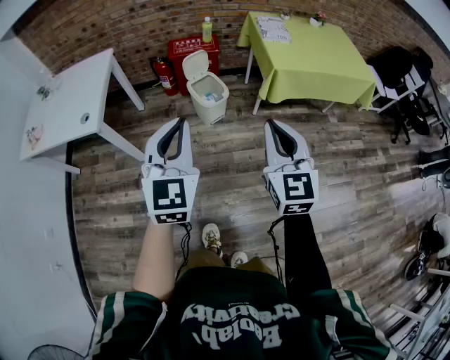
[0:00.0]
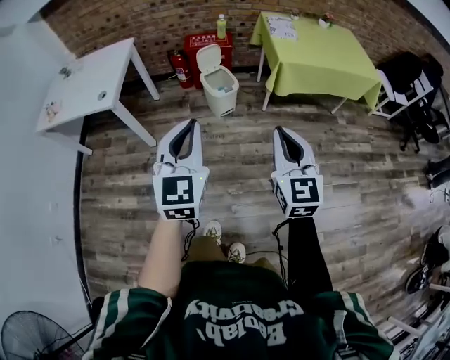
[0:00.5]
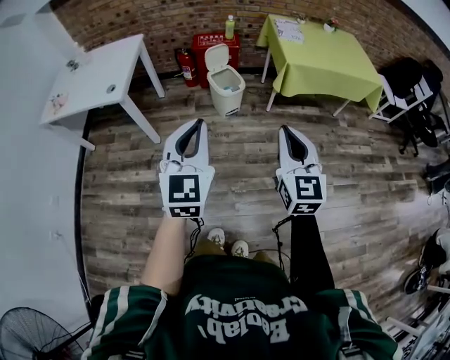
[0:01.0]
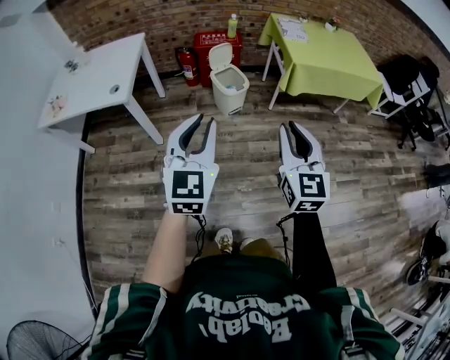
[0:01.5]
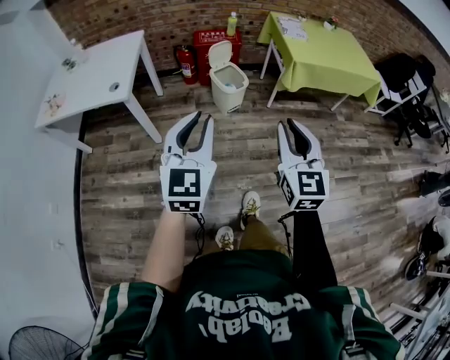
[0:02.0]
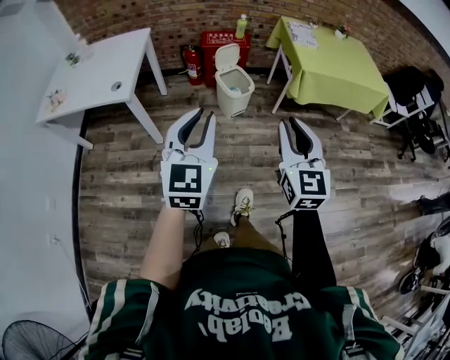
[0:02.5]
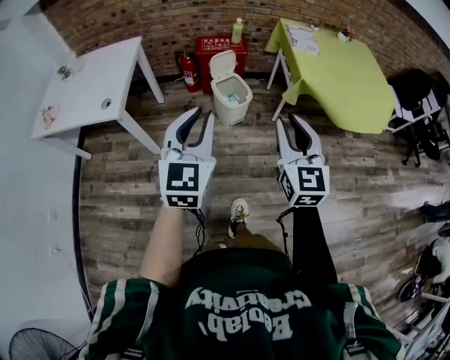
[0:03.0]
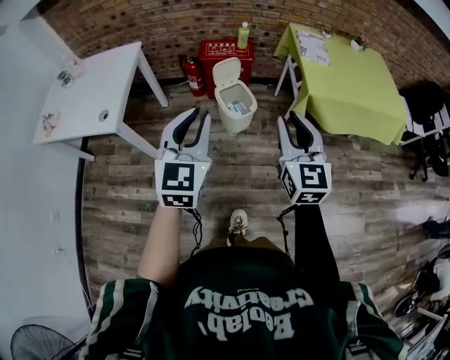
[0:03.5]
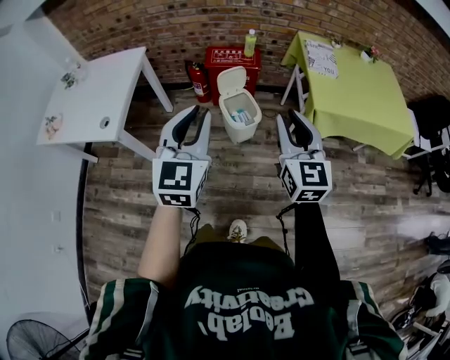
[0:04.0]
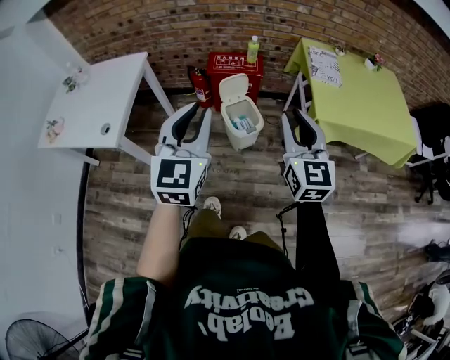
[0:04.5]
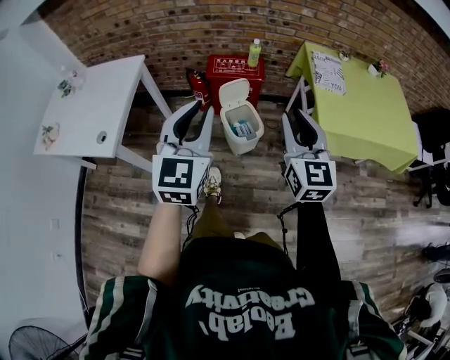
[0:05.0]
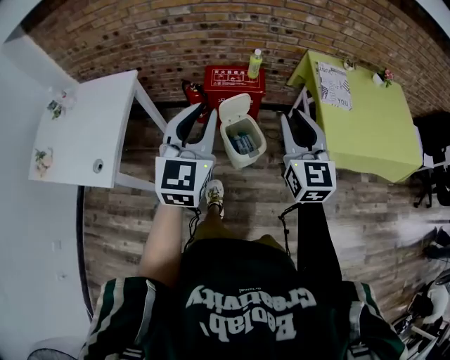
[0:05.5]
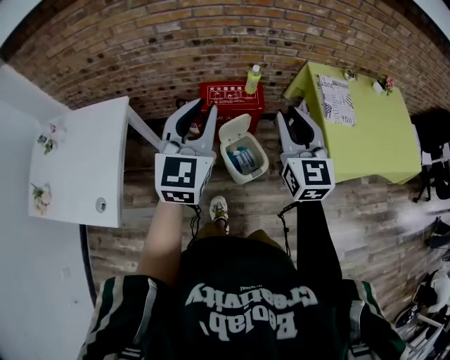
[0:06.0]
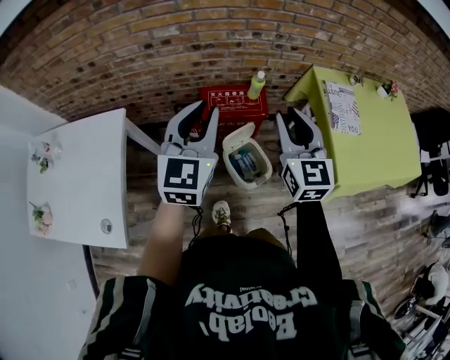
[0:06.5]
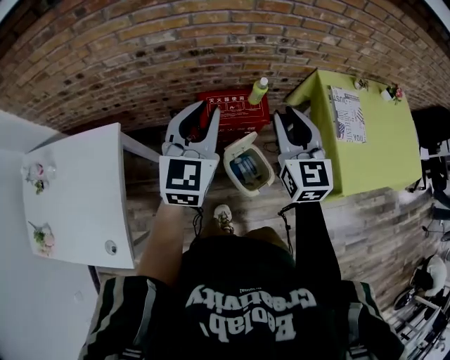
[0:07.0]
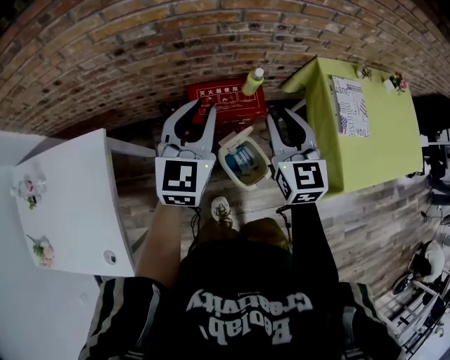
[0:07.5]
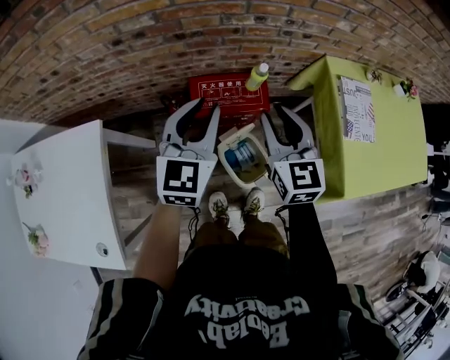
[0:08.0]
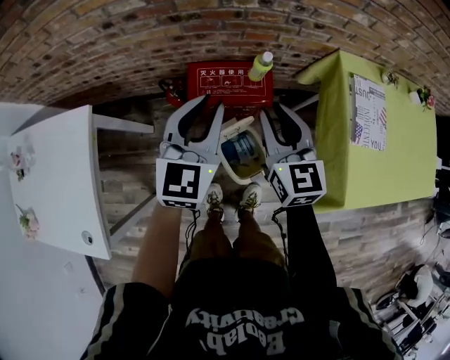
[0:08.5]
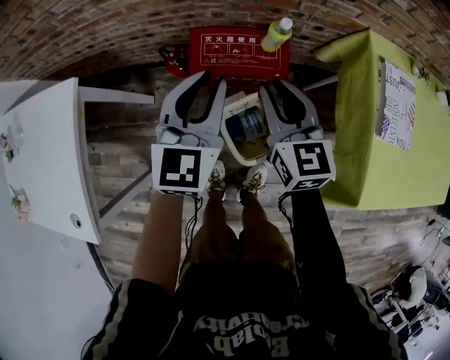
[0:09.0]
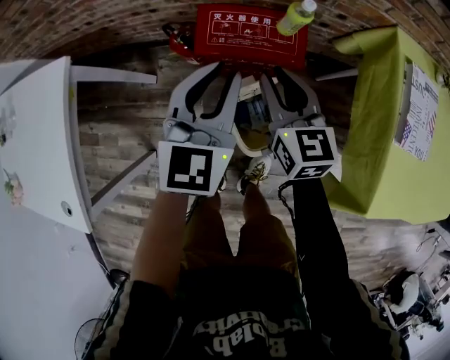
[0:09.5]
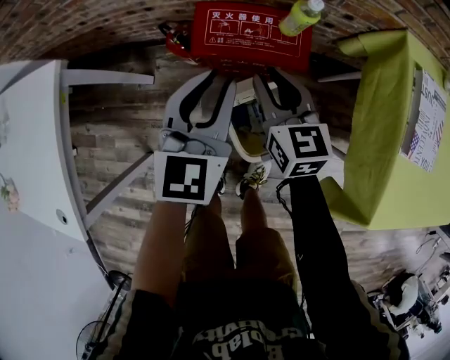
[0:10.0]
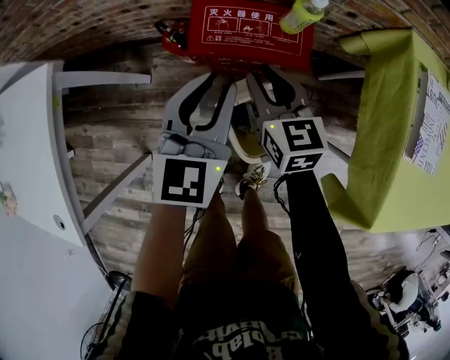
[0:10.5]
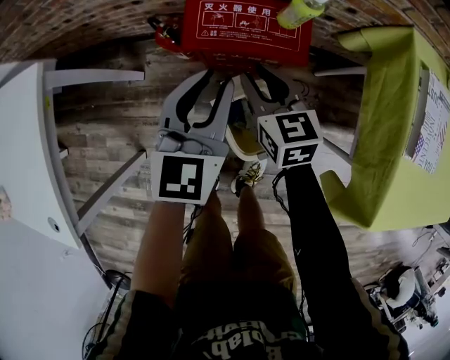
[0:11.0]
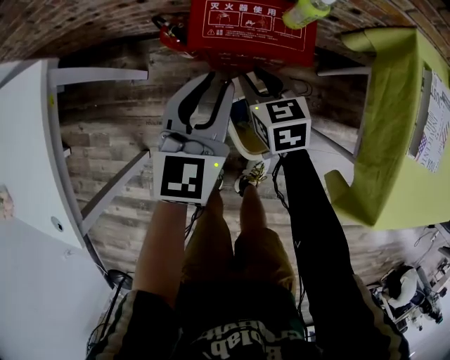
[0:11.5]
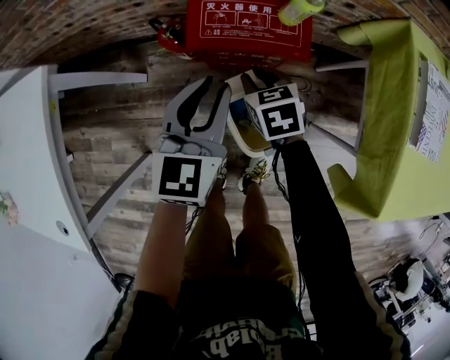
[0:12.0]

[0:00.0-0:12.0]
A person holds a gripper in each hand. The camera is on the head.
0:00.0 to 0:02.0: The grippers both shift backward and to the left by approximately 15 cm.
0:02.0 to 0:04.0: The grippers both shift forward by approximately 35 cm.
0:04.0 to 0:06.0: Both grippers travel together forward, approximately 35 cm.
0:06.0 to 0:08.0: Both grippers travel together forward and downward, roughly 25 cm.
0:08.0 to 0:10.0: Both grippers travel together downward, approximately 20 cm. The right gripper swivels some 20 degrees.
0:10.0 to 0:12.0: The right gripper moves downward, about 10 cm, and turns by approximately 30 degrees, while the left gripper heads downward, covering about 5 cm.

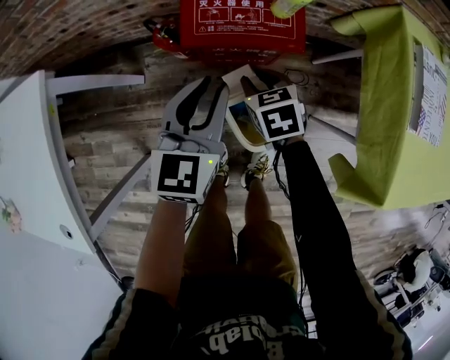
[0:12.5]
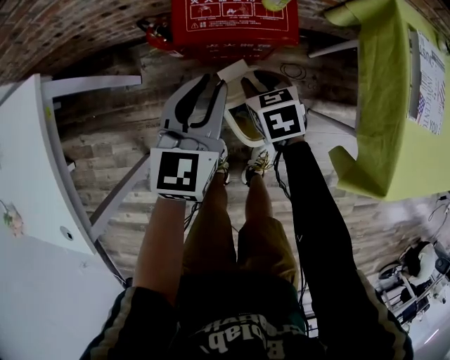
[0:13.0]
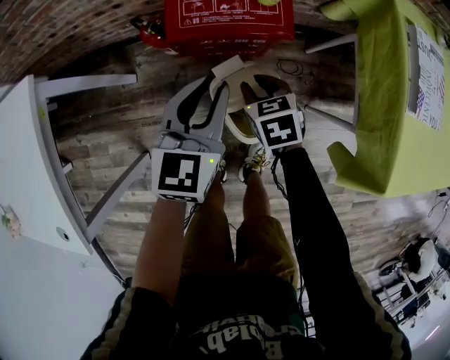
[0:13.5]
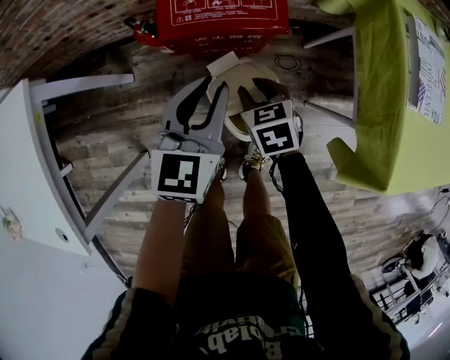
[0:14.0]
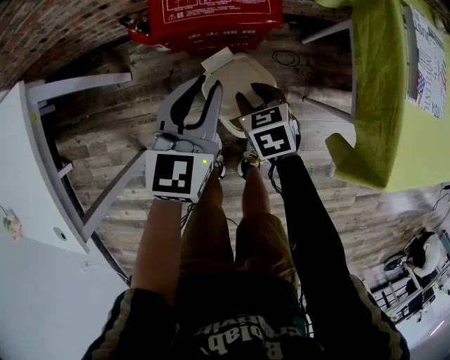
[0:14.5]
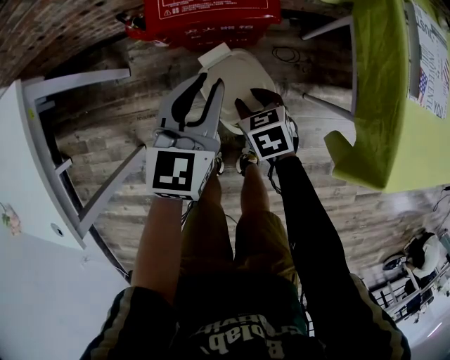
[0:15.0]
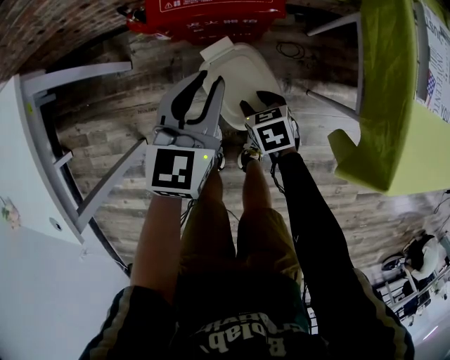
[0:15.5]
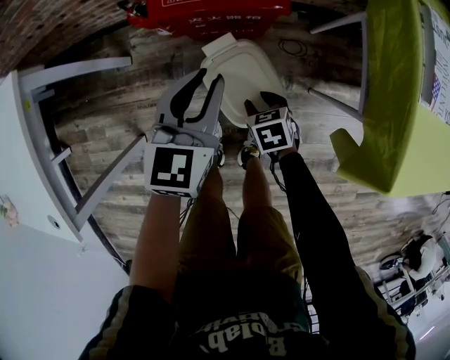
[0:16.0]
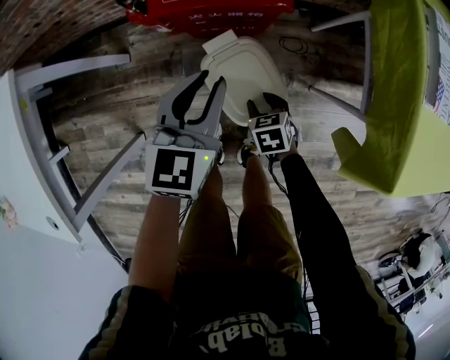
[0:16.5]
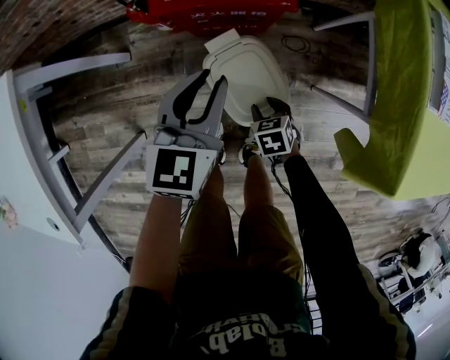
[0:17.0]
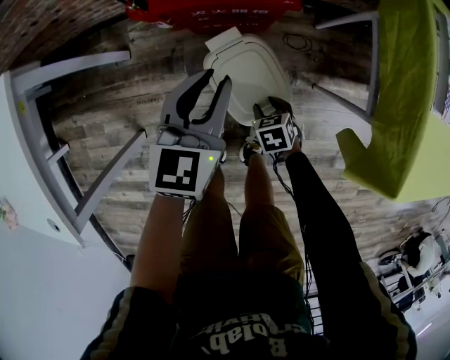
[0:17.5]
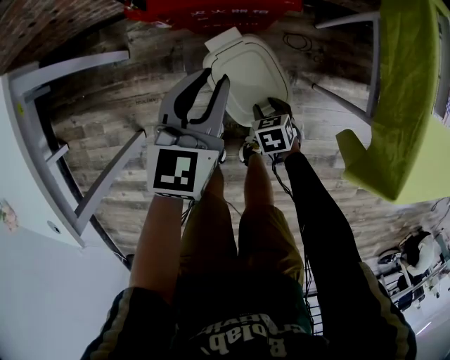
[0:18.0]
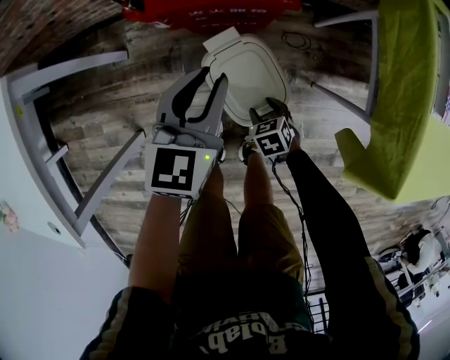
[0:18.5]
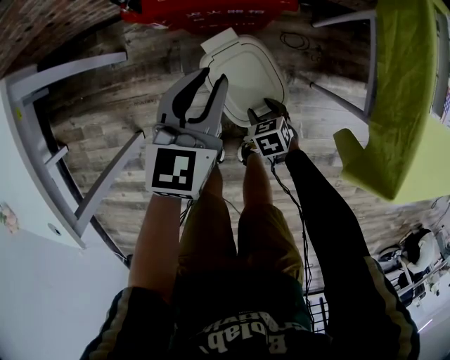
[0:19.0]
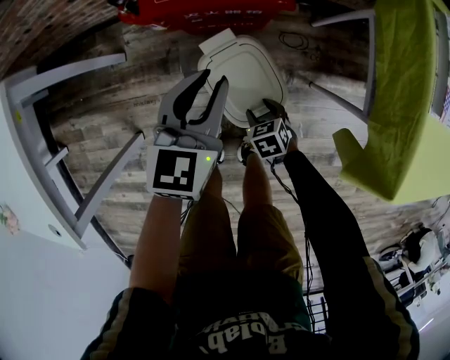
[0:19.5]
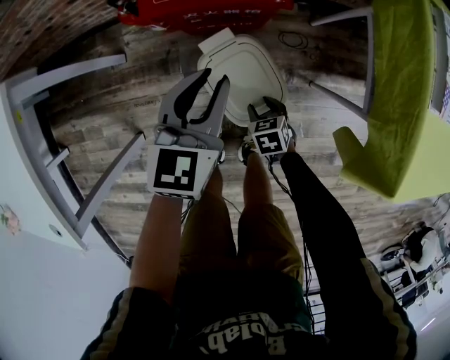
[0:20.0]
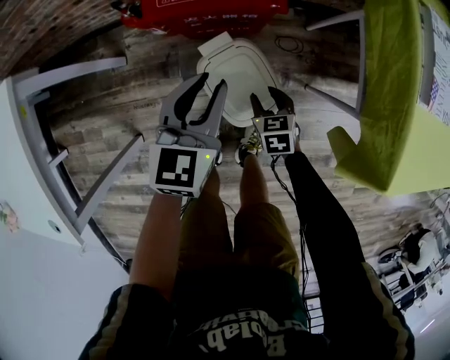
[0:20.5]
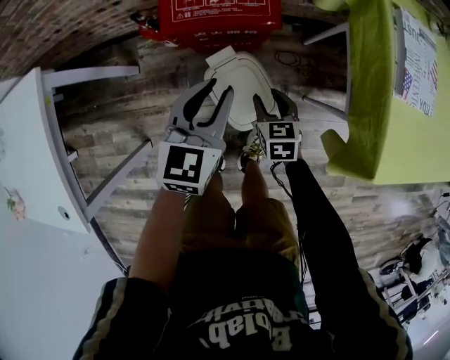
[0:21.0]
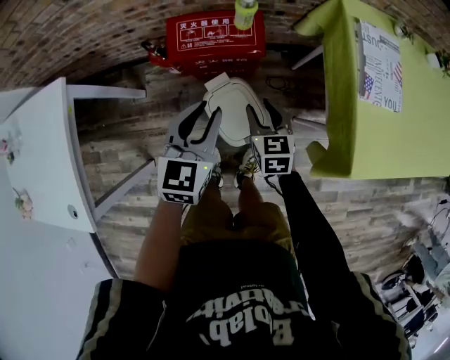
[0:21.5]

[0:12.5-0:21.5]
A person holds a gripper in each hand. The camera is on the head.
0:12.5 to 0:14.5: The right gripper heads backward, covering roughly 10 cm, while the left gripper travels to the right by roughly 5 cm.
0:14.5 to 0:17.0: The right gripper travels downward and backward by some 15 cm.
0:17.0 to 0:19.5: The grippers make only small movements.
0:19.5 to 0:21.5: The right gripper shifts some 30 cm upward, and tilts its fingers roughly 30 degrees upward. The left gripper moves upward, some 15 cm.

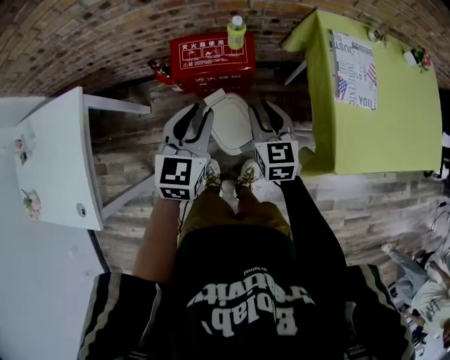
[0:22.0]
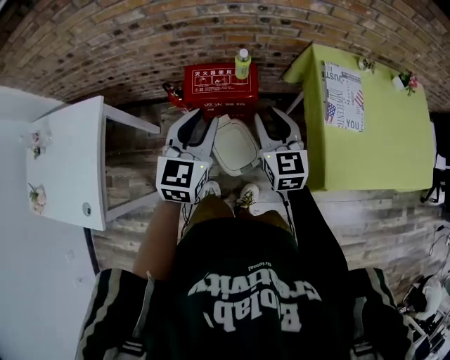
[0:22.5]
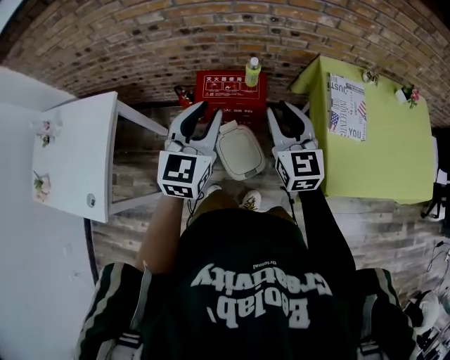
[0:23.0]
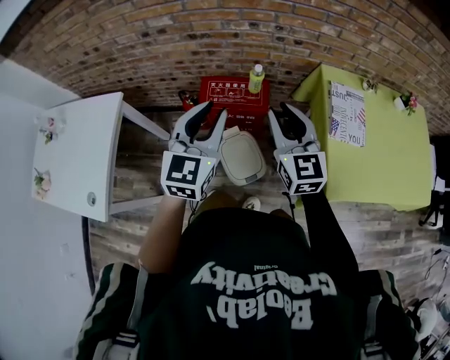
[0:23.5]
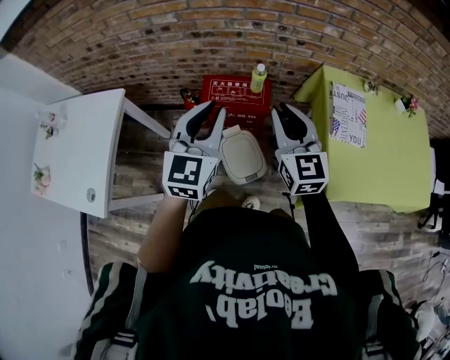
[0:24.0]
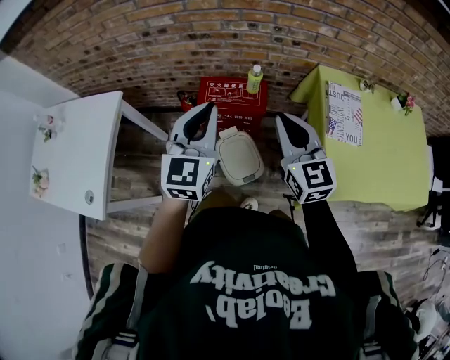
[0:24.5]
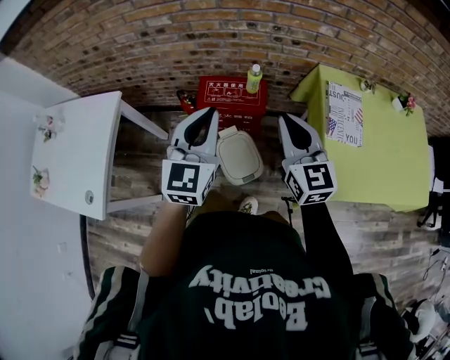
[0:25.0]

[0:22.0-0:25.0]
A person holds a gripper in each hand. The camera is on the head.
0:22.0 to 0:23.5: Both grippers move upward, approximately 20 cm. The right gripper rotates approximately 20 degrees.
0:23.5 to 0:25.0: The left gripper closes up; the right gripper closes up.

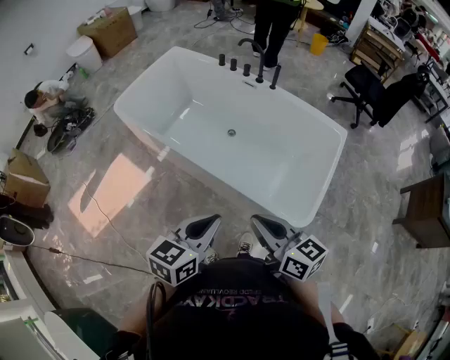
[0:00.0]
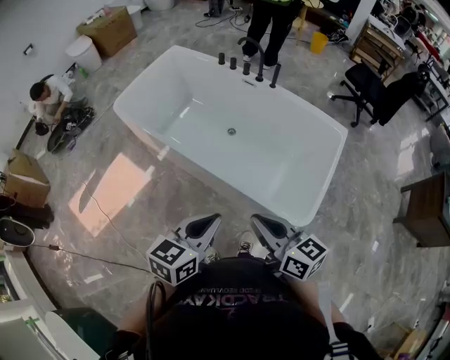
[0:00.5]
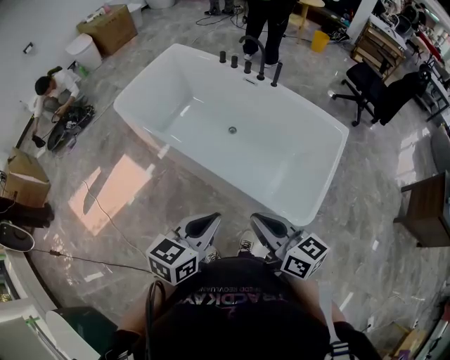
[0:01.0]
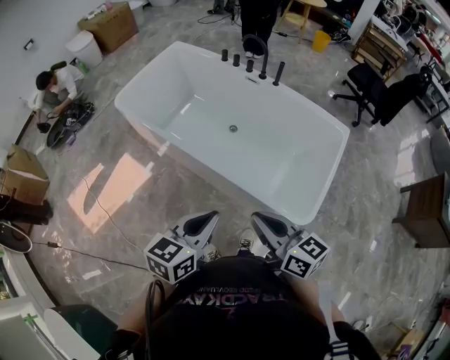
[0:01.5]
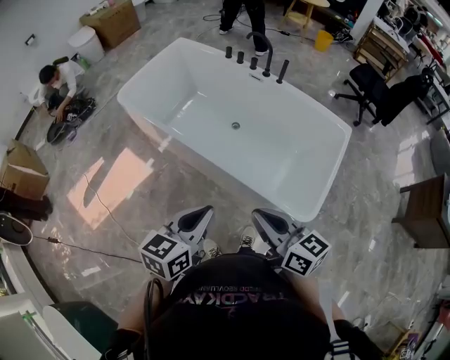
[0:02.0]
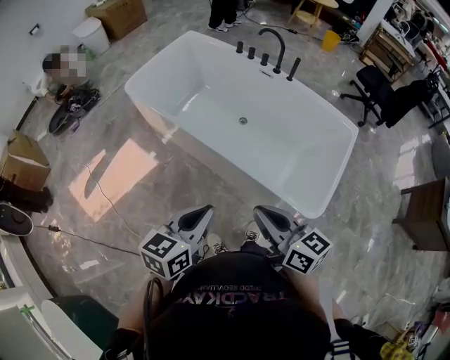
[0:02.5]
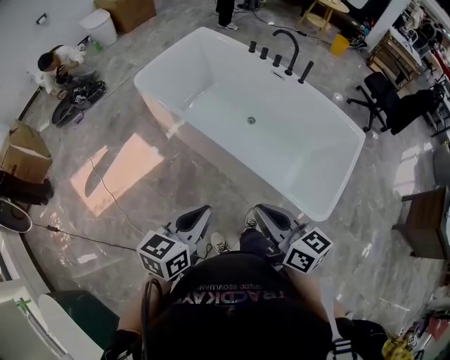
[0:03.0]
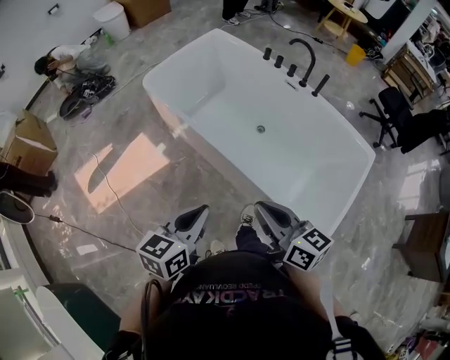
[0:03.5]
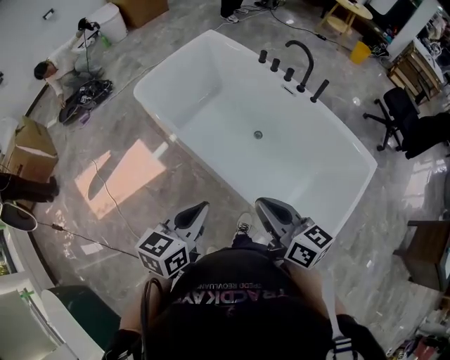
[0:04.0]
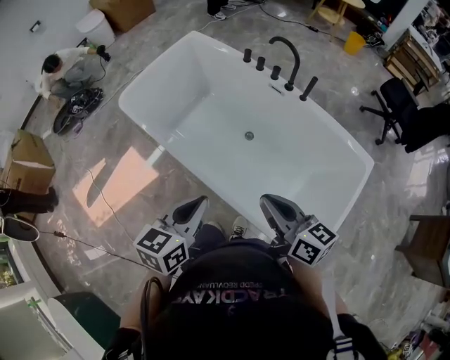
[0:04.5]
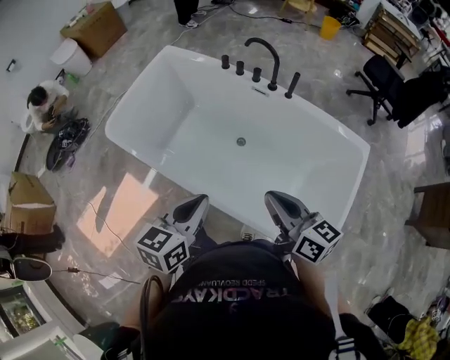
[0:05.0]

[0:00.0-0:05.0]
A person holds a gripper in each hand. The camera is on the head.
0:00.0 to 0:02.5: Both grippers travel together to the left, some 5 cm.
0:02.5 to 0:05.0: Both grippers move forward, about 25 cm.
